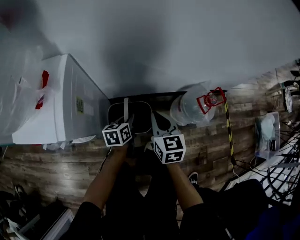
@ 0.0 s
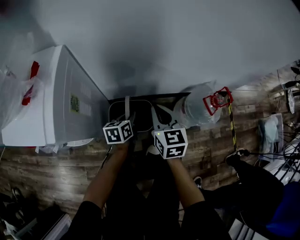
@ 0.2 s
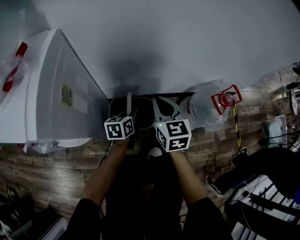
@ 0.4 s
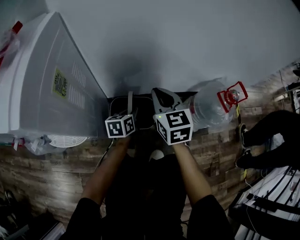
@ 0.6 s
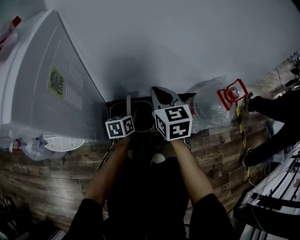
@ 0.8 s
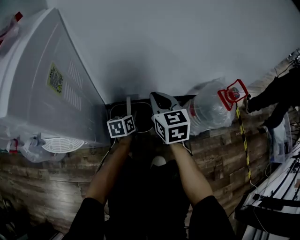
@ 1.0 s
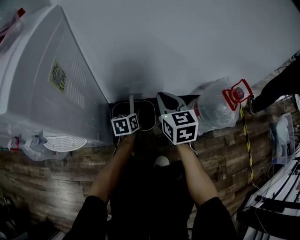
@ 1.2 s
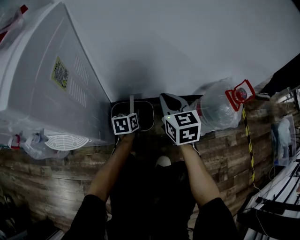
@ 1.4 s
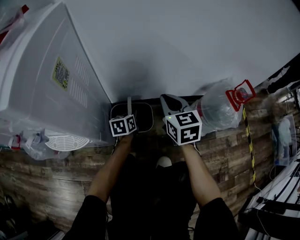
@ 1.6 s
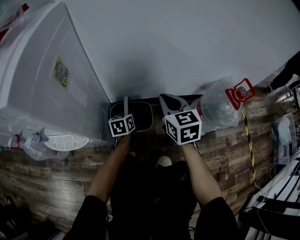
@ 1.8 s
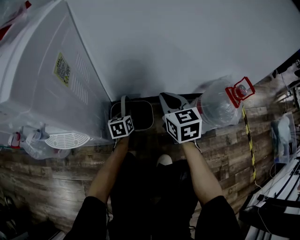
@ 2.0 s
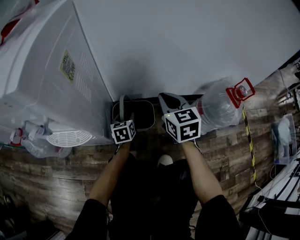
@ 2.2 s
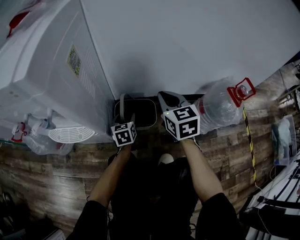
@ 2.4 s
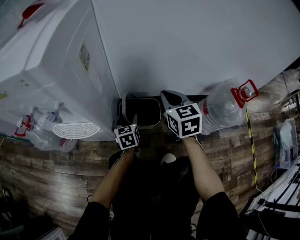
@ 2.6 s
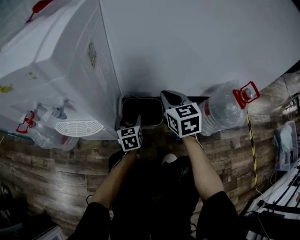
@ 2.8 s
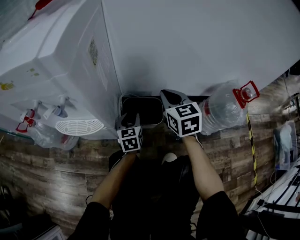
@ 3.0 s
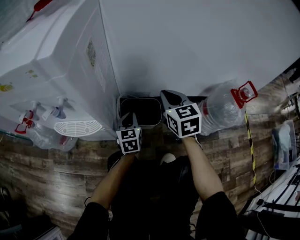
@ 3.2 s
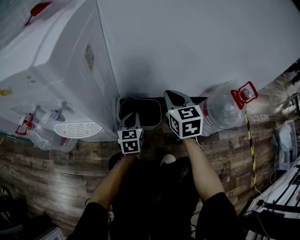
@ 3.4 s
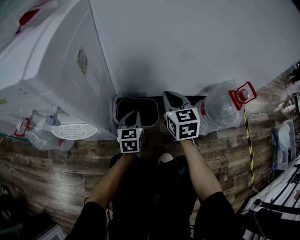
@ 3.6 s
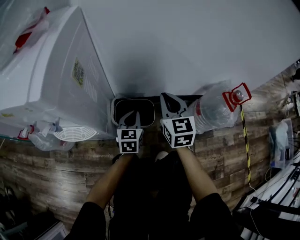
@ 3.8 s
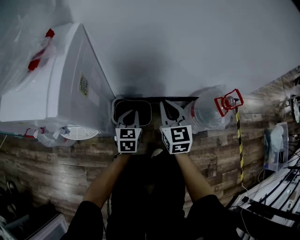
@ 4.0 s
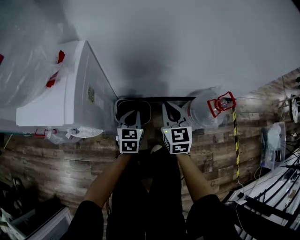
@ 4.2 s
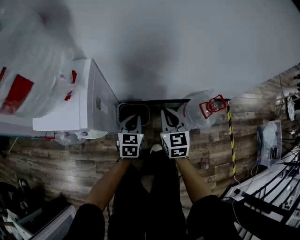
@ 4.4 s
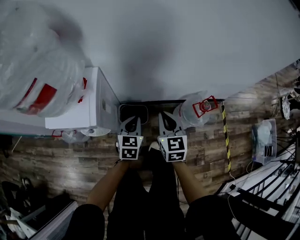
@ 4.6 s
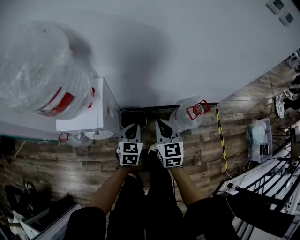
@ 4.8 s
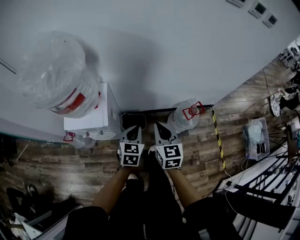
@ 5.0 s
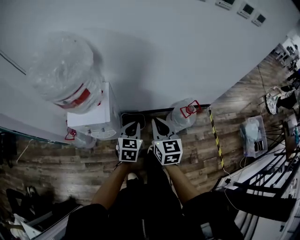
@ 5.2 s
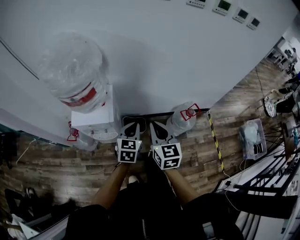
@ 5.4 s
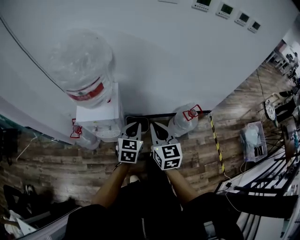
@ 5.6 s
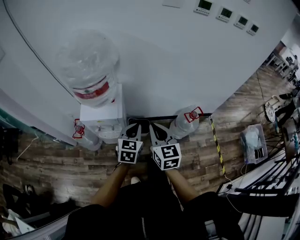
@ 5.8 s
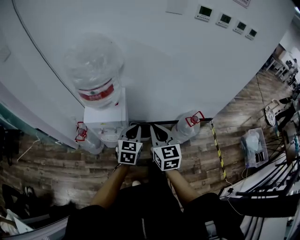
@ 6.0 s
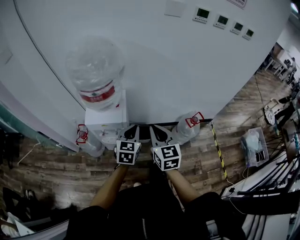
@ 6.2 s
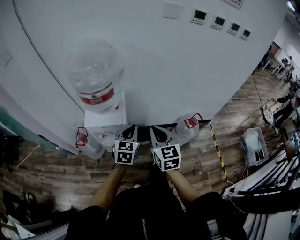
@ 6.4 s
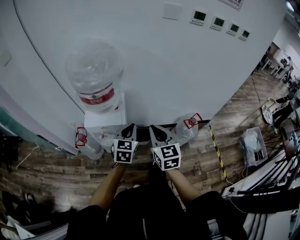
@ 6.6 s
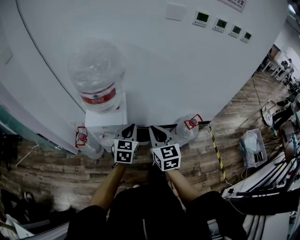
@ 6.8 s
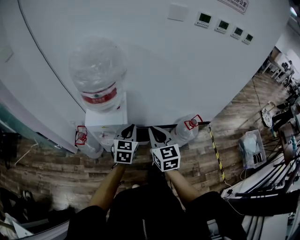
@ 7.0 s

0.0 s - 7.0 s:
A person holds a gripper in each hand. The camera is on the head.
0.0 s - 1.4 s: The left gripper travels downward by roughly 20 cm; the right gripper shifts about 15 cm downward and forward.
1.4 s - 2.8 s: The right gripper goes approximately 5 cm to the left. The left gripper moves to the left and backward, about 10 cm, swivels about 20 degrees, and opens up.
2.8 s - 4.2 s: The right gripper moves upward and to the right, roughly 15 cm. Meanwhile the left gripper is displaced upward by roughly 25 cm, and closes its fingers.
4.2 s - 5.6 s: Both grippers move upward and backward, about 40 cm.
5.6 s - 7.0 s: Both grippers move to the left, some 5 cm.

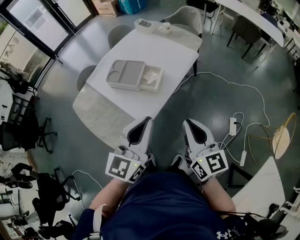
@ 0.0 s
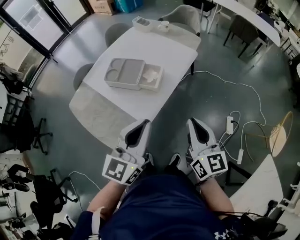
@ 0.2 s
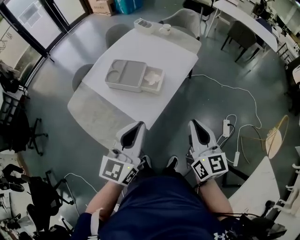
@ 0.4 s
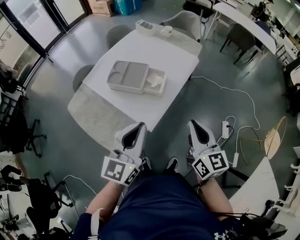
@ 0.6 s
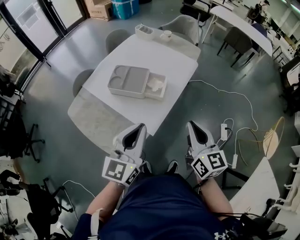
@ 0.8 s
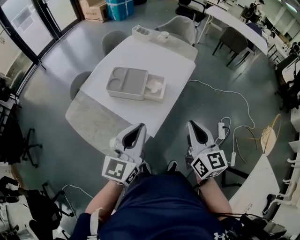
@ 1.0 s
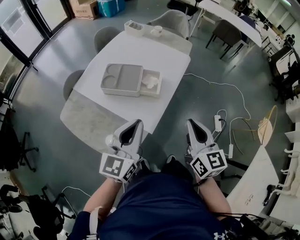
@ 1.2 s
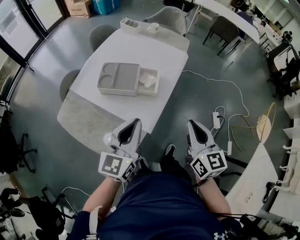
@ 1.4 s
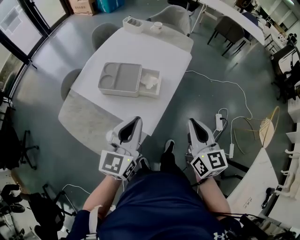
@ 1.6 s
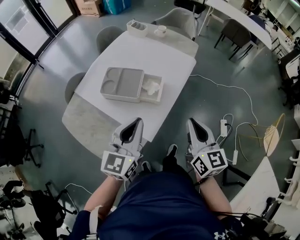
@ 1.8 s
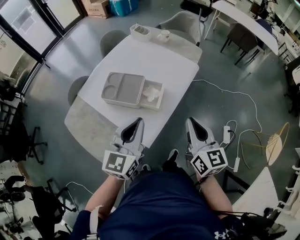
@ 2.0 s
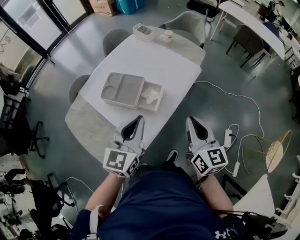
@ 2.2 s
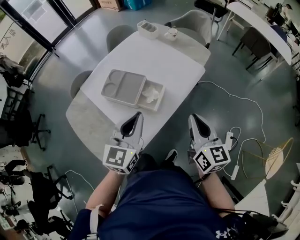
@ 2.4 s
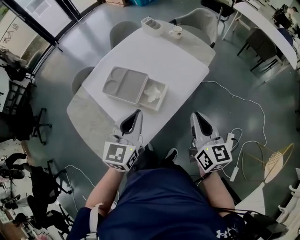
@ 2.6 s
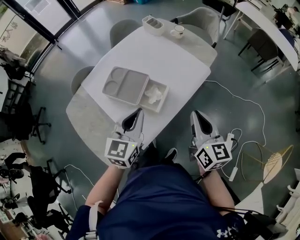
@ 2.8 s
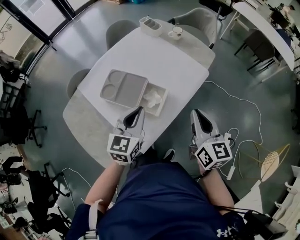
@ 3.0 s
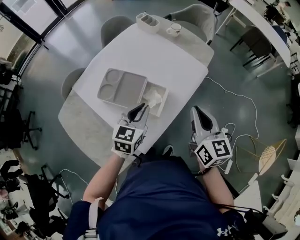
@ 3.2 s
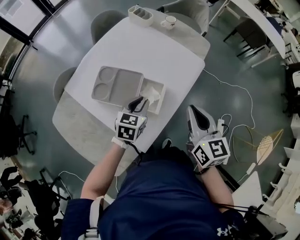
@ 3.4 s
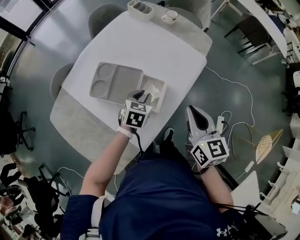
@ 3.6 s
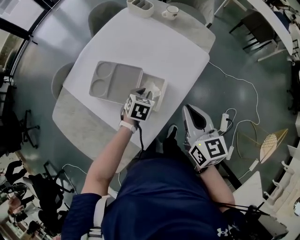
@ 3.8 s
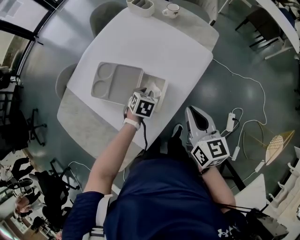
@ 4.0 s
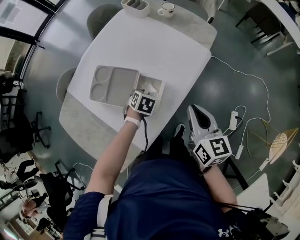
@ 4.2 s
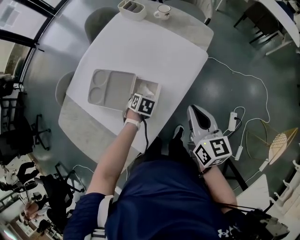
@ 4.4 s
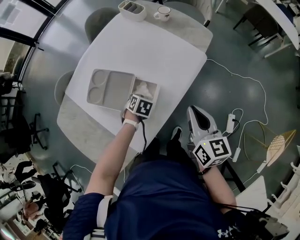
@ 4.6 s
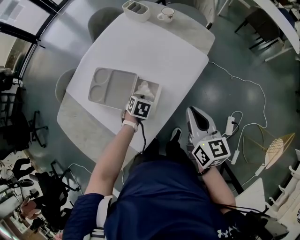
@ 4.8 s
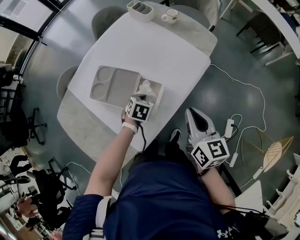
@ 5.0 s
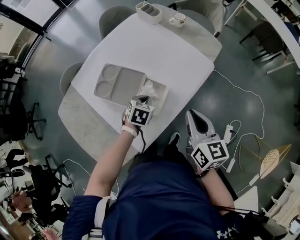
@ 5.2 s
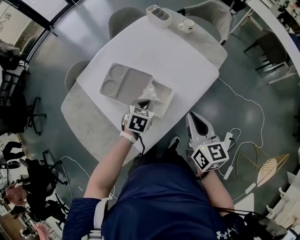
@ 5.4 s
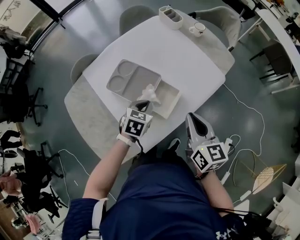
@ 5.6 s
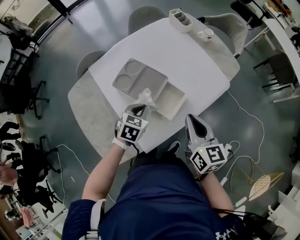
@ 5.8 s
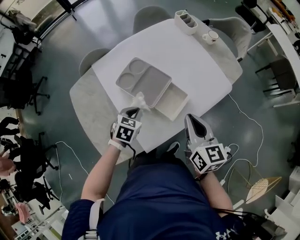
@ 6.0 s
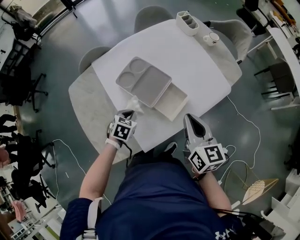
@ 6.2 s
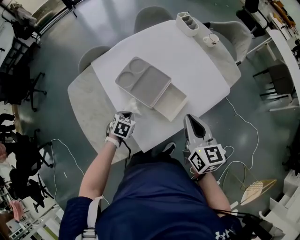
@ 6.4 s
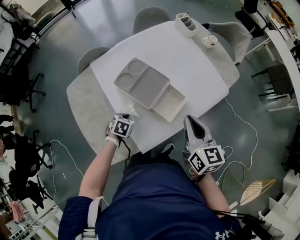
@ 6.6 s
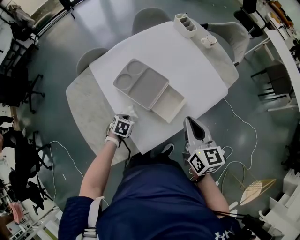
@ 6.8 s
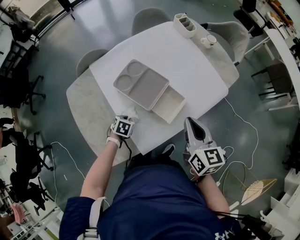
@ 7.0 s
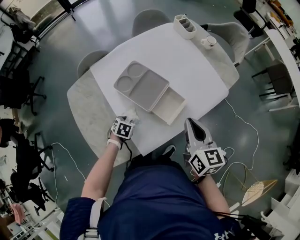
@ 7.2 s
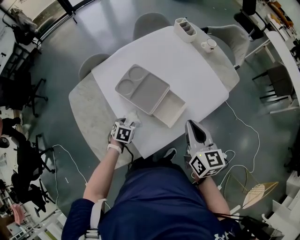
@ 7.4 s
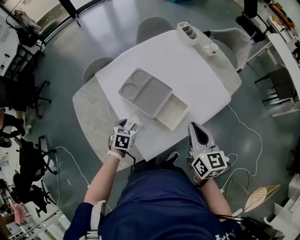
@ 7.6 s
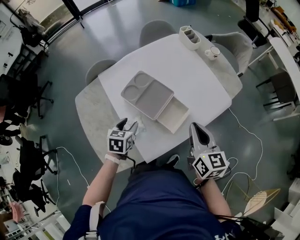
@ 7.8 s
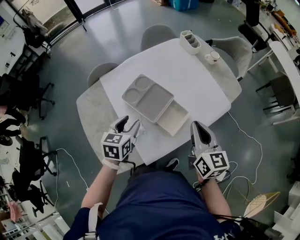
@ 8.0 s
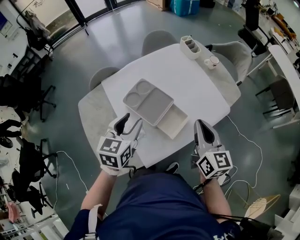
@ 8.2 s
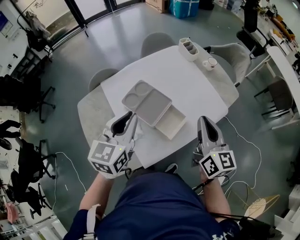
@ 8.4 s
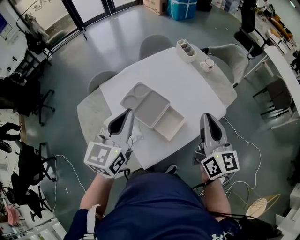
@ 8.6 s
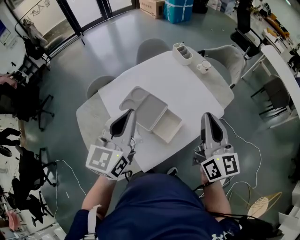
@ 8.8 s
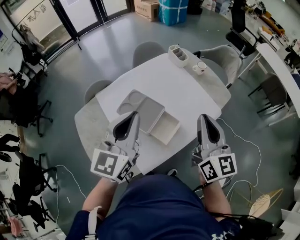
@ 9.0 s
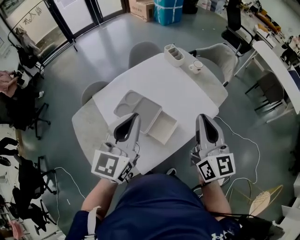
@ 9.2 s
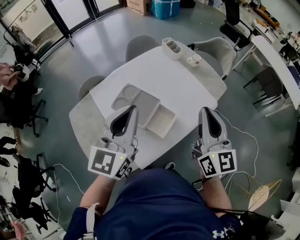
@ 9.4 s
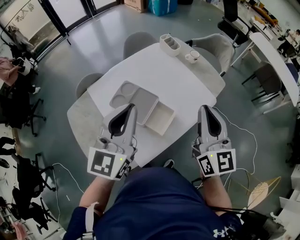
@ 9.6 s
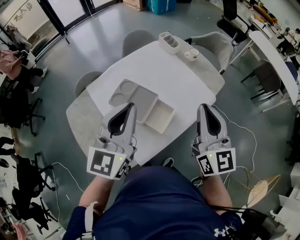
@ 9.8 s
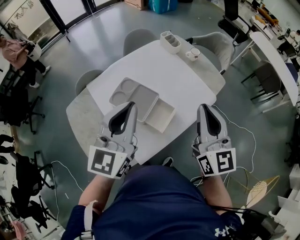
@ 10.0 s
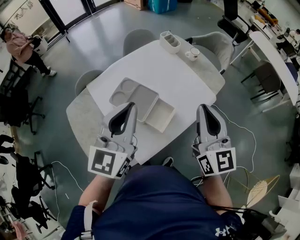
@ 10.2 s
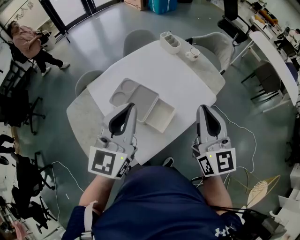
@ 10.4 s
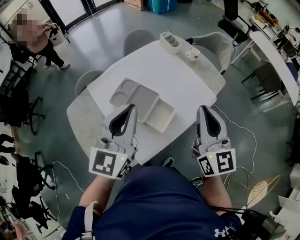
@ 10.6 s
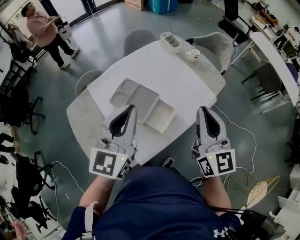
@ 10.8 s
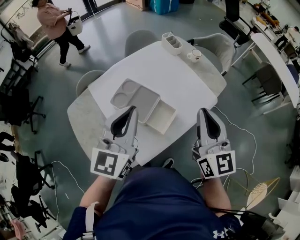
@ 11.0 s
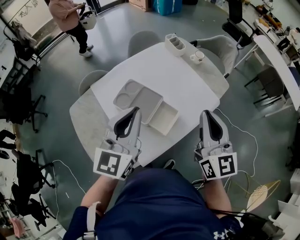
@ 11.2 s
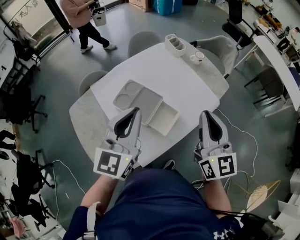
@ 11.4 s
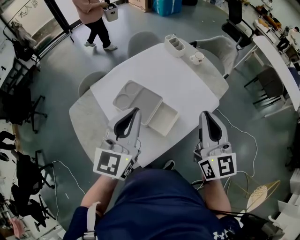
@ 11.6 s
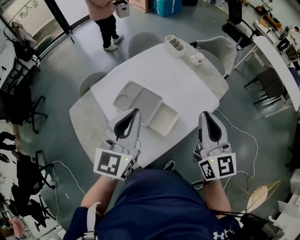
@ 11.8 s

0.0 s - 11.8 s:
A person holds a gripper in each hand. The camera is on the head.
0.0 s - 1.4 s: The right gripper heads to the left, covering about 10 cm; the left gripper is displaced to the left by some 15 cm.
1.4 s - 3.0 s: Both grippers travel together forward, some 20 cm. The left gripper rotates roughly 20 degrees.
3.0 s - 4.4 s: The right gripper is displaced downward by some 5 cm. The left gripper is displaced downward by roughly 30 cm, and points its fingers approximately 60 degrees further downward.
4.4 s - 6.0 s: The left gripper ends up roughly 20 cm from where it was, and rotates approximately 30 degrees. The right gripper shifts by approximately 15 cm, and swivels approximately 20 degrees.
6.0 s - 7.4 s: The left gripper heads downward and to the left, covering some 10 cm, and opens.
7.4 s - 8.8 s: The left gripper is displaced upward by about 40 cm, angles its fingers upward, by approximately 60 degrees, and closes. Meanwhile the right gripper travels upward by roughly 15 cm, and swivels roughly 20 degrees.
8.8 s - 11.8 s: The grippers stay close to where they were, moving slightly.

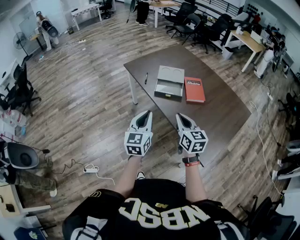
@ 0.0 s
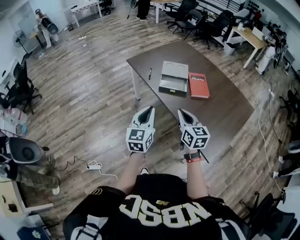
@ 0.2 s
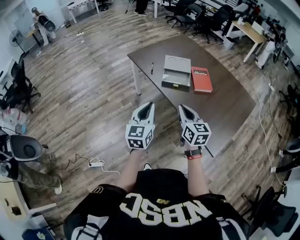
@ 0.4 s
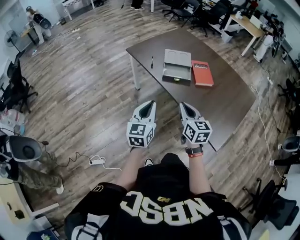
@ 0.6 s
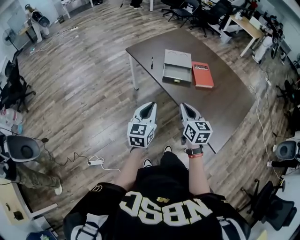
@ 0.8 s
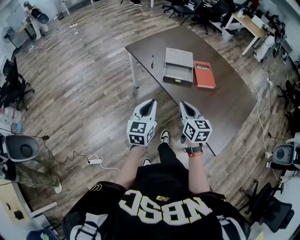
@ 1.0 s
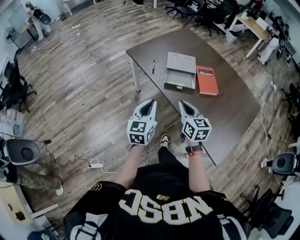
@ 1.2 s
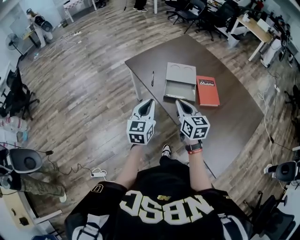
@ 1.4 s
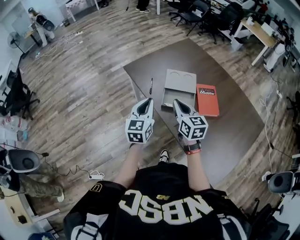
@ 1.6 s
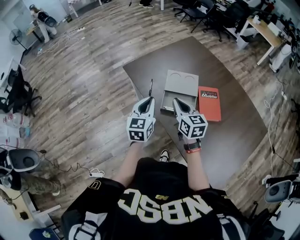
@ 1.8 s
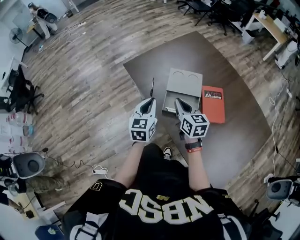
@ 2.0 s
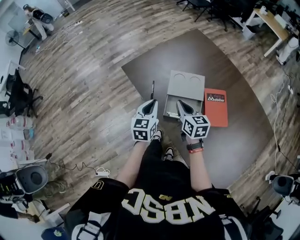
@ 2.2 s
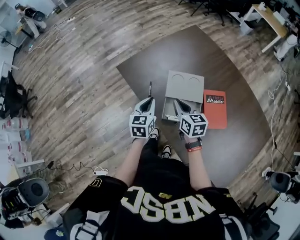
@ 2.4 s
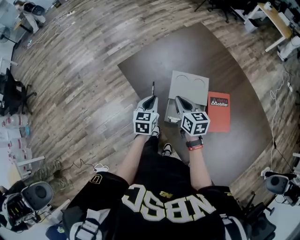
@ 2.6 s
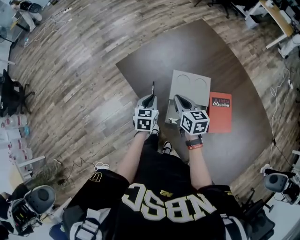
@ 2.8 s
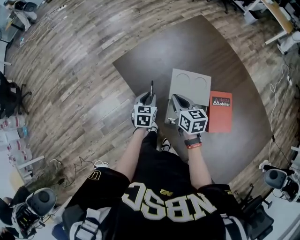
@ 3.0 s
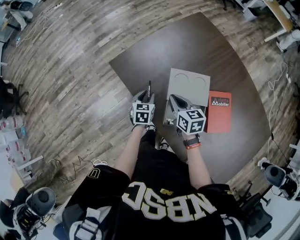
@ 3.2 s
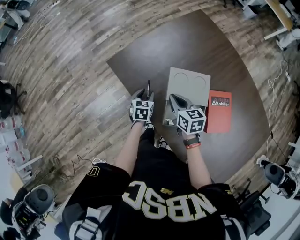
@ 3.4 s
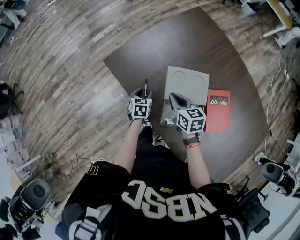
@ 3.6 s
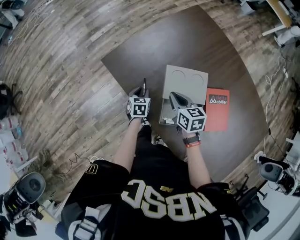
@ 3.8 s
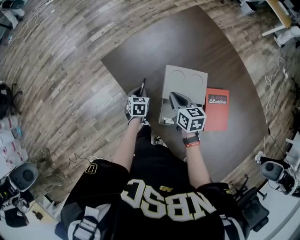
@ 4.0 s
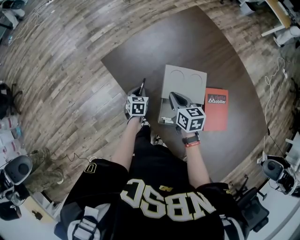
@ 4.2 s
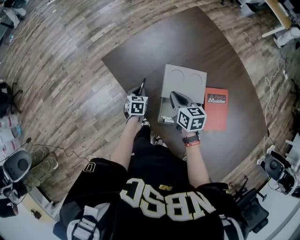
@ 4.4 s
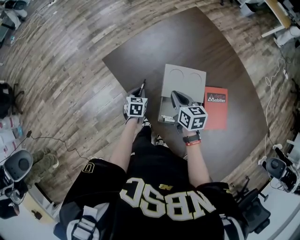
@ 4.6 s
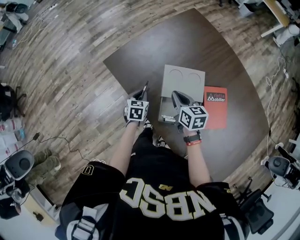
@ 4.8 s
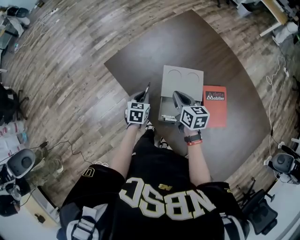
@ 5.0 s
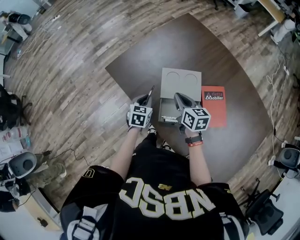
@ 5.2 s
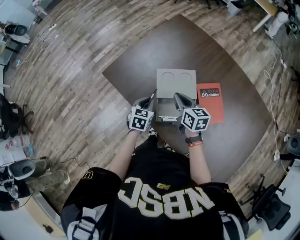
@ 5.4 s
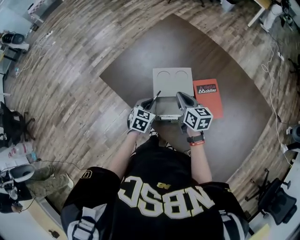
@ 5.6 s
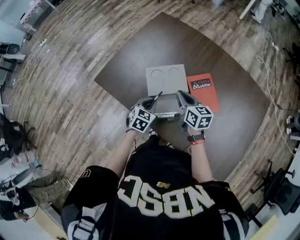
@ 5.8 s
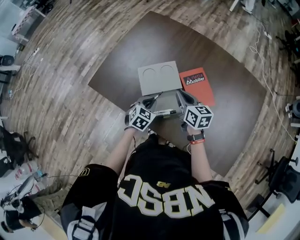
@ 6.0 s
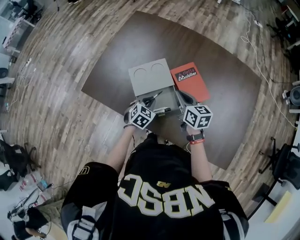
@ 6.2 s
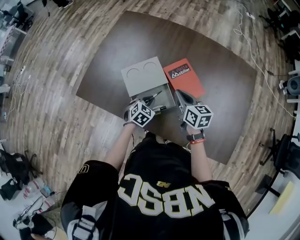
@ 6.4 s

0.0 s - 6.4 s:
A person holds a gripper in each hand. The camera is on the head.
0.0 s - 1.6 s: The two grippers go about 25 cm forward.
1.6 s - 3.2 s: The right gripper travels forward and downward by approximately 25 cm, and swivels about 20 degrees; the left gripper heads downward and forward, covering some 35 cm, angles its fingers downward, by approximately 30 degrees, and opens its fingers.
3.2 s - 4.8 s: The left gripper closes its fingers.
4.8 s - 6.4 s: The right gripper changes place by some 20 cm, and rotates roughly 30 degrees. The left gripper shifts by about 25 cm, and rolls clockwise, seen from behind, by about 50 degrees.
